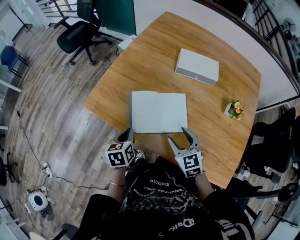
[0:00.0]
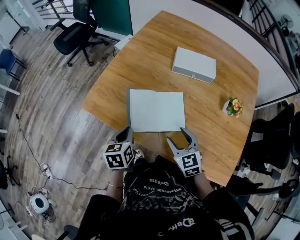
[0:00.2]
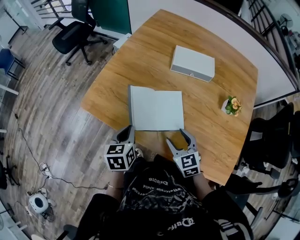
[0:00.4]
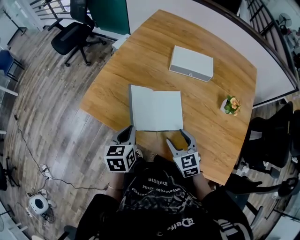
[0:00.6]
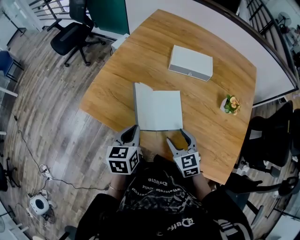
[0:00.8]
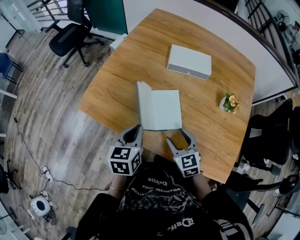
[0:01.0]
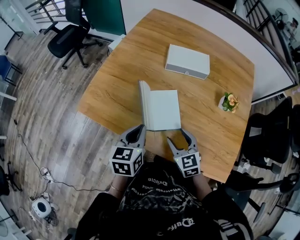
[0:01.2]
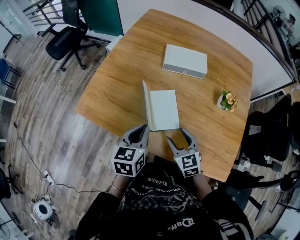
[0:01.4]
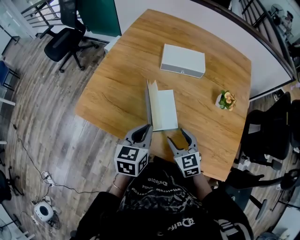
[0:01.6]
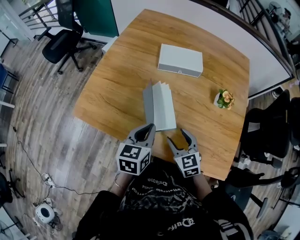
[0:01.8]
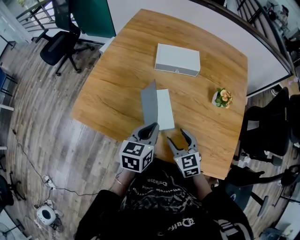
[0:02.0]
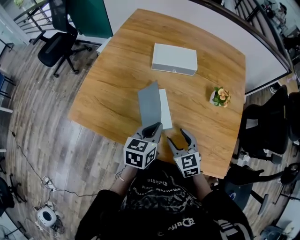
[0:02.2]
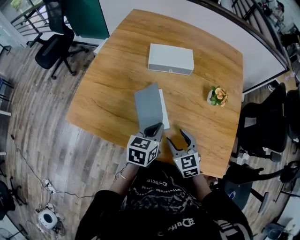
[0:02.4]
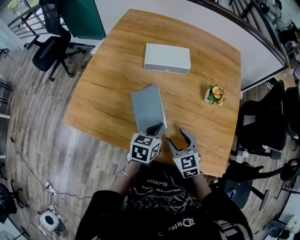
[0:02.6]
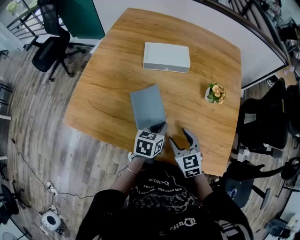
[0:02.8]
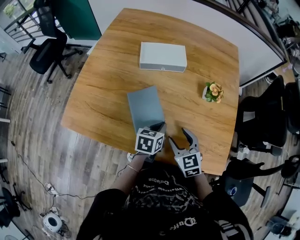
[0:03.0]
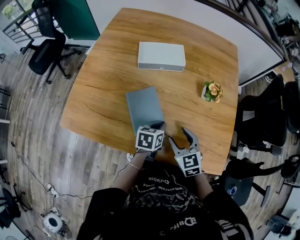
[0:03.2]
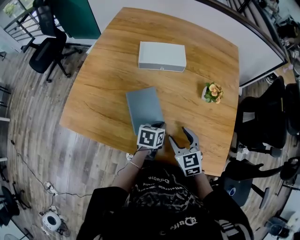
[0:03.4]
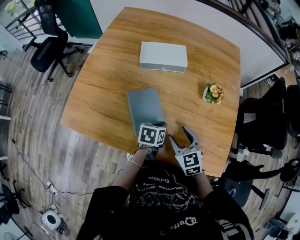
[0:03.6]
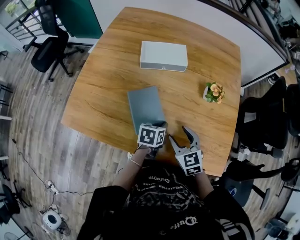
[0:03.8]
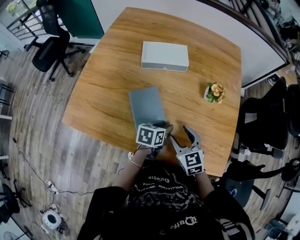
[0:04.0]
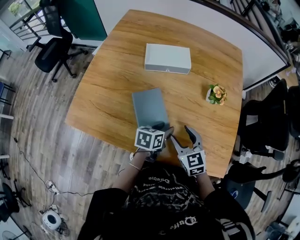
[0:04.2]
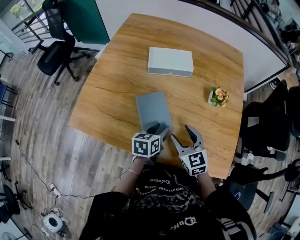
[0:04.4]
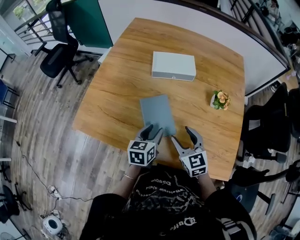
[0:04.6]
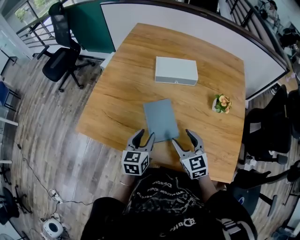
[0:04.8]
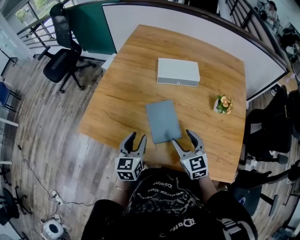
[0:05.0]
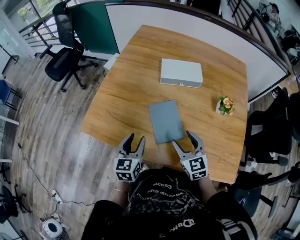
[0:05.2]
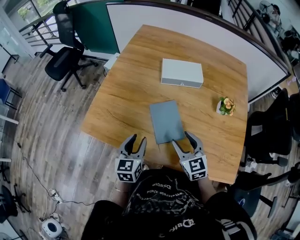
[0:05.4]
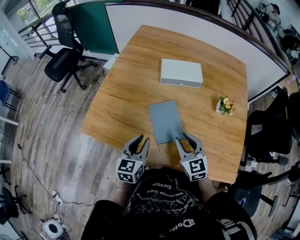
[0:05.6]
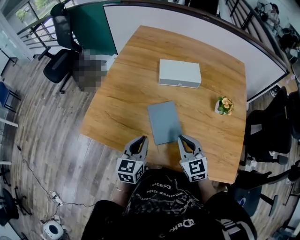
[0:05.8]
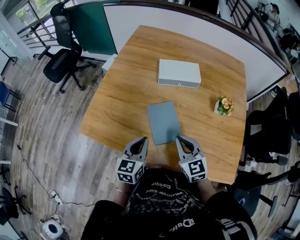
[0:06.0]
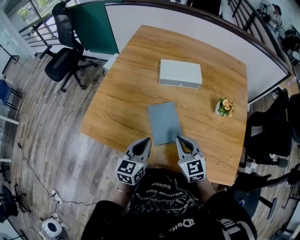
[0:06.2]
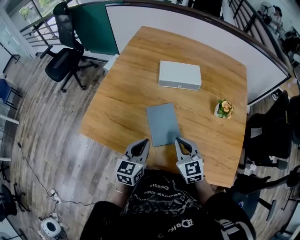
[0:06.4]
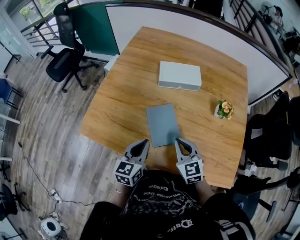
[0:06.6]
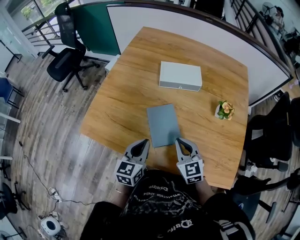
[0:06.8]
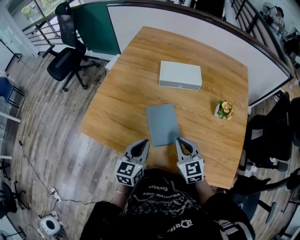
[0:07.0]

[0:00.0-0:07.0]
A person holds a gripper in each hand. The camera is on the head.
0.0 to 1.4 s: The left gripper goes about 15 cm to the right and upward, and rotates roughly 20 degrees.
1.4 to 2.8 s: The left gripper heads to the right and downward, covering about 15 cm, and rotates some 20 degrees. The right gripper moves to the right, about 5 cm.
2.8 to 4.2 s: The left gripper opens up.
4.2 to 5.6 s: The right gripper heads to the left, covering roughly 10 cm. The left gripper travels to the left and upward by some 20 cm, and turns by roughly 40 degrees.
5.6 to 7.0 s: The right gripper closes up.

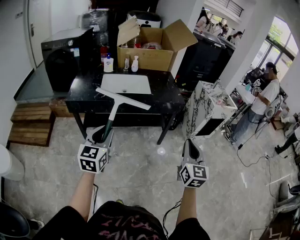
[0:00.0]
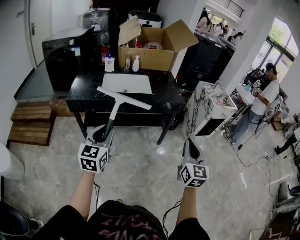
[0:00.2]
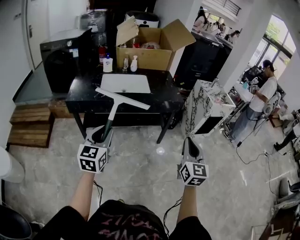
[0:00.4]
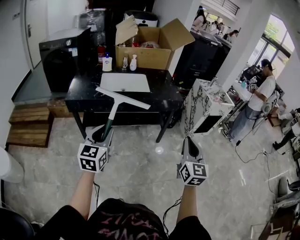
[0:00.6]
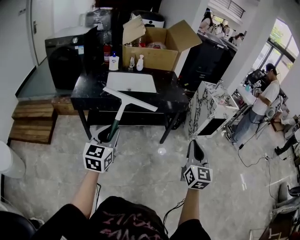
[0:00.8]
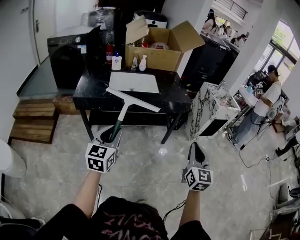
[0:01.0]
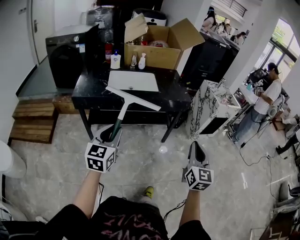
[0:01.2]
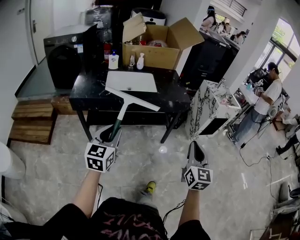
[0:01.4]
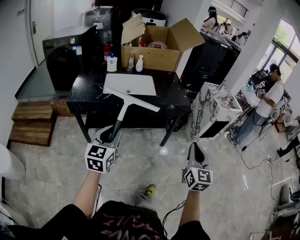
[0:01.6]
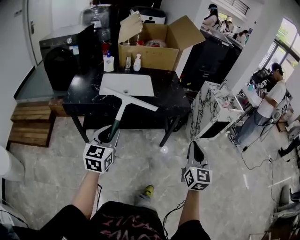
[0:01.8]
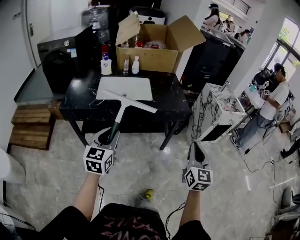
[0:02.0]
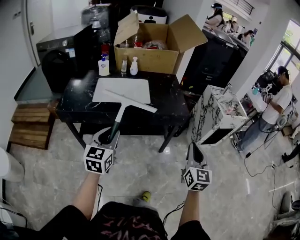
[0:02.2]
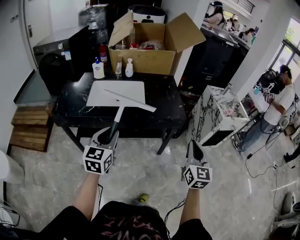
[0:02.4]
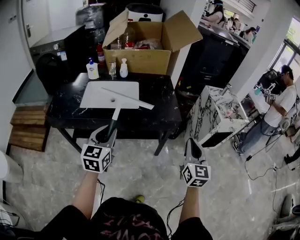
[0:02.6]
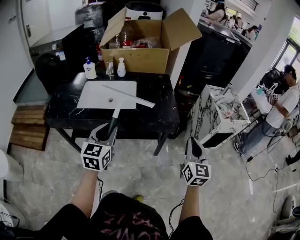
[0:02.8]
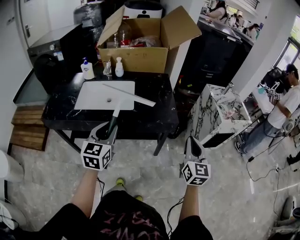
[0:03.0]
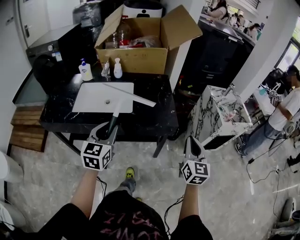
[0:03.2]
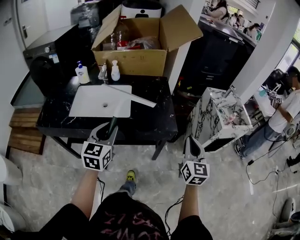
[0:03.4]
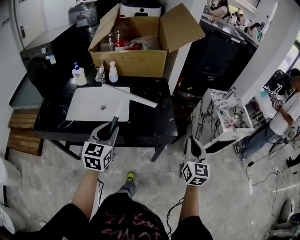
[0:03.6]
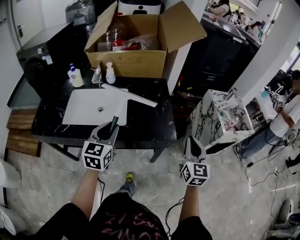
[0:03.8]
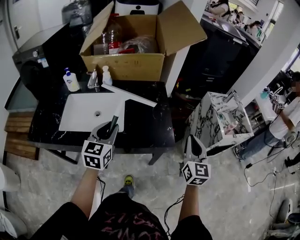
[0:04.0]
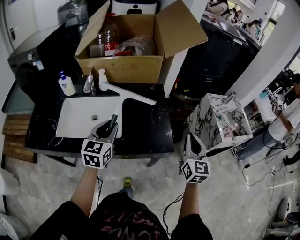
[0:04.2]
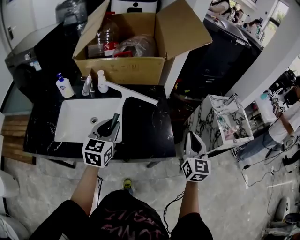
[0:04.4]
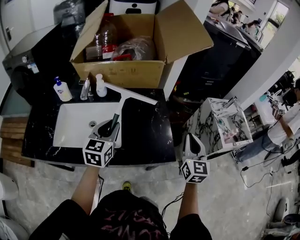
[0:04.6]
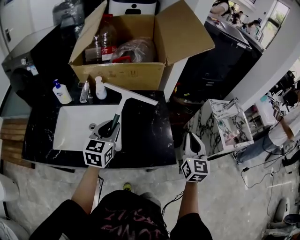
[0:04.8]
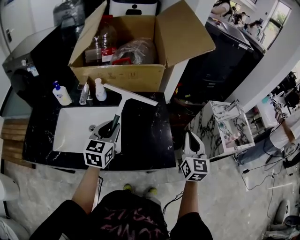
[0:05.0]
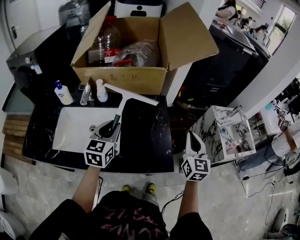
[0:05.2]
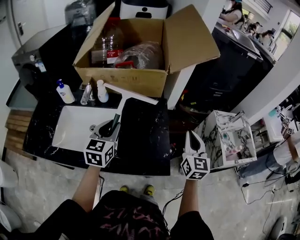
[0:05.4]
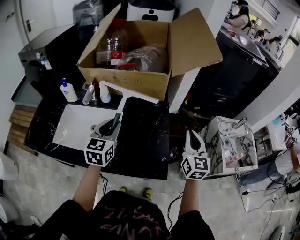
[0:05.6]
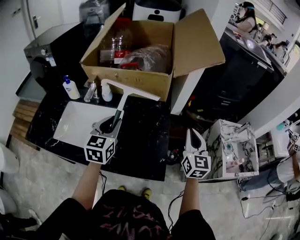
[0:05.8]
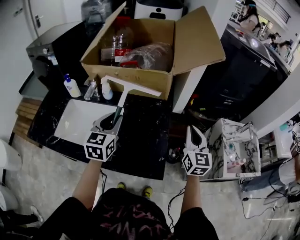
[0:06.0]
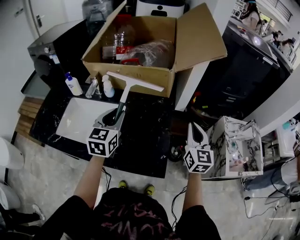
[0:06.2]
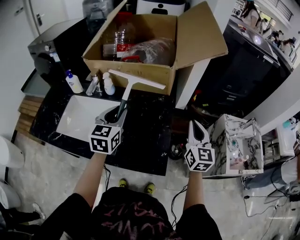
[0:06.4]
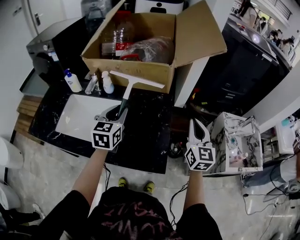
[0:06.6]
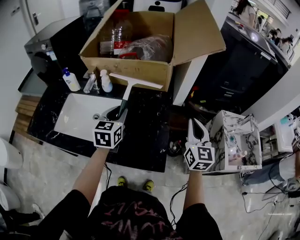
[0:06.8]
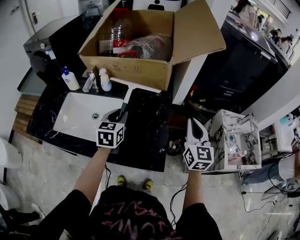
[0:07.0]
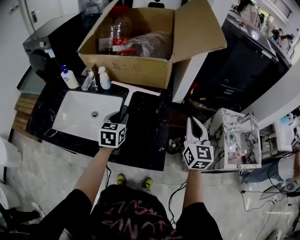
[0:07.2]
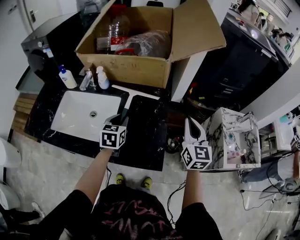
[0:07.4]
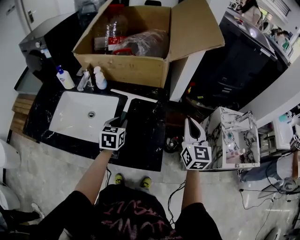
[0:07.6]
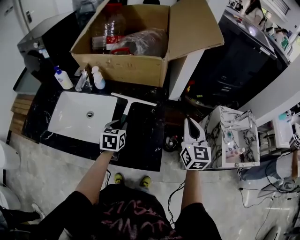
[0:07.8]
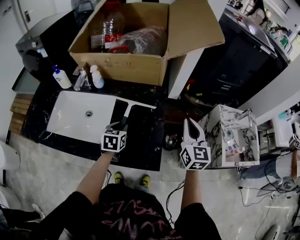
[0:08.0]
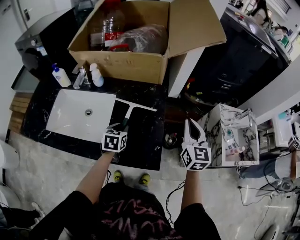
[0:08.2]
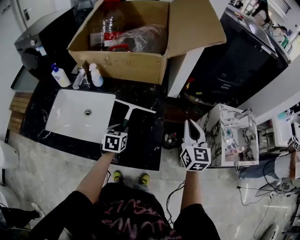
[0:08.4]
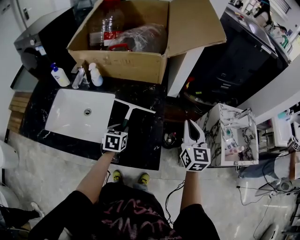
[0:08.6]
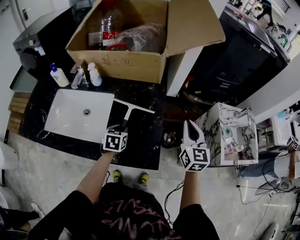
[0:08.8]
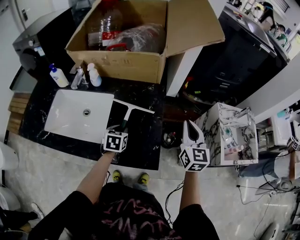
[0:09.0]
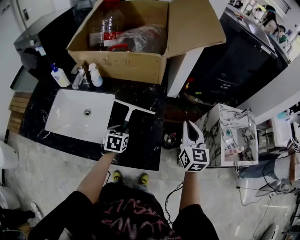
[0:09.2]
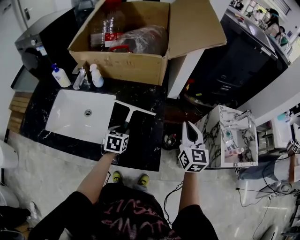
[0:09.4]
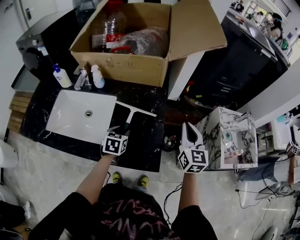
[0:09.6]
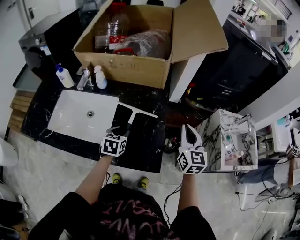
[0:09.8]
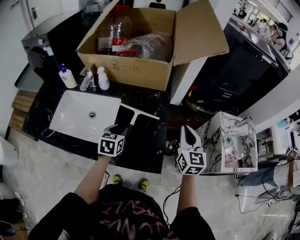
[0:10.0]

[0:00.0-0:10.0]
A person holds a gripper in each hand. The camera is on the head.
0.0 to 1.4 s: The grippers make only small movements.
1.4 to 2.8 s: Both grippers travel together forward and to the right, approximately 35 cm.
2.8 to 4.2 s: The two grippers go roughly 25 cm forward.
4.2 to 5.8 s: The right gripper moves forward, about 20 cm. The left gripper moves forward, roughly 15 cm.
5.8 to 7.2 s: The left gripper travels downward by about 10 cm.
7.2 to 8.6 s: The left gripper travels downward by roughly 10 cm.
8.6 to 10.0 s: The left gripper shifts by some 5 cm.

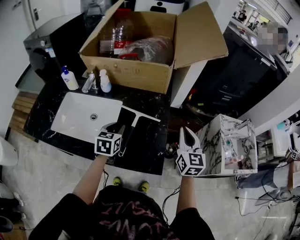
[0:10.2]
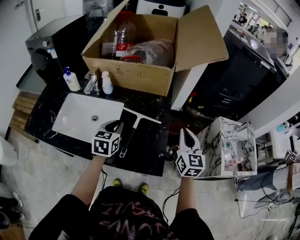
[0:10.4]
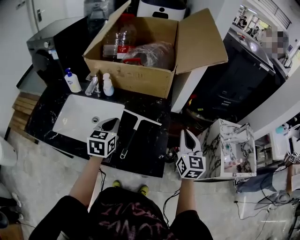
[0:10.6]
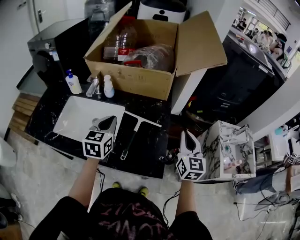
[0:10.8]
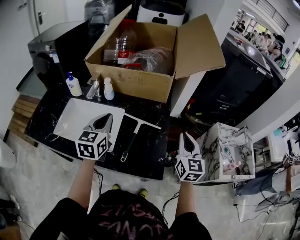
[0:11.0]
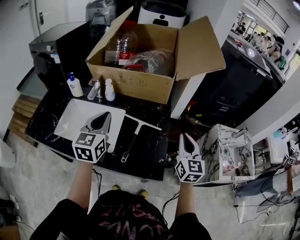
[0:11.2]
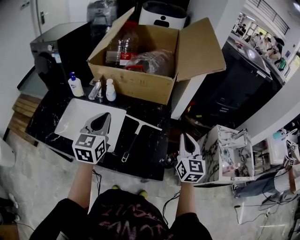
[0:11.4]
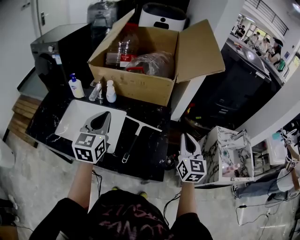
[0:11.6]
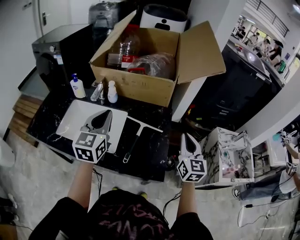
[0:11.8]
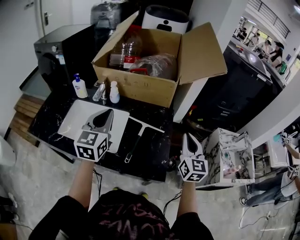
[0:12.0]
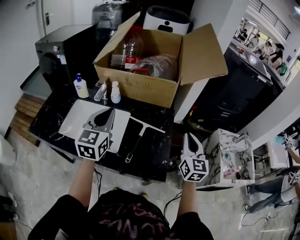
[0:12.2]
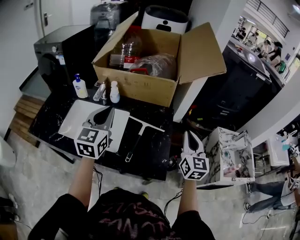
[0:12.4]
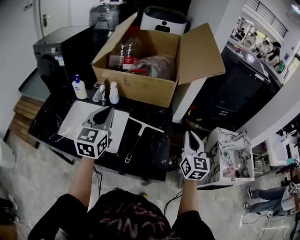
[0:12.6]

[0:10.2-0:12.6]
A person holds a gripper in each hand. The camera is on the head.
10.2 to 11.4 s: The left gripper heads upward, covering roughly 15 cm, swivels about 20 degrees, and closes up.
11.4 to 12.6 s: The grippers stay close to where they were, moving slightly.

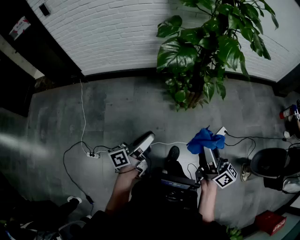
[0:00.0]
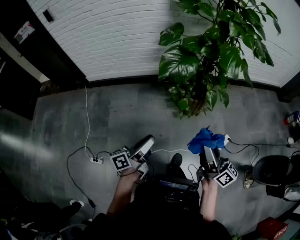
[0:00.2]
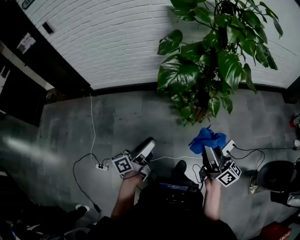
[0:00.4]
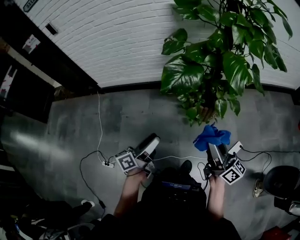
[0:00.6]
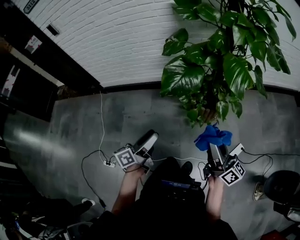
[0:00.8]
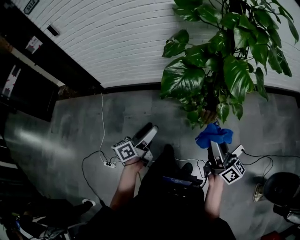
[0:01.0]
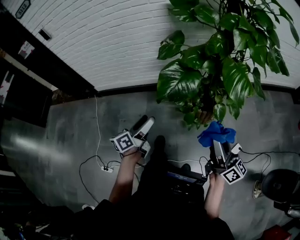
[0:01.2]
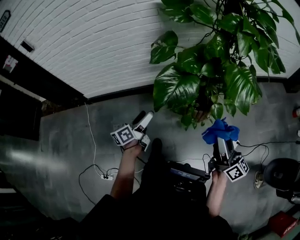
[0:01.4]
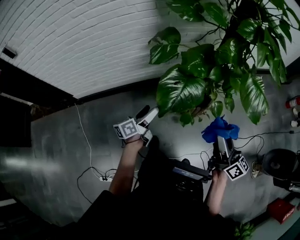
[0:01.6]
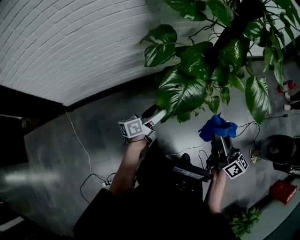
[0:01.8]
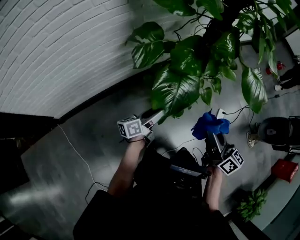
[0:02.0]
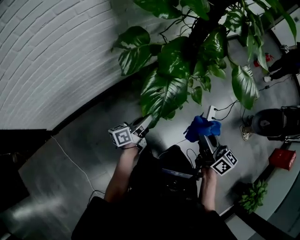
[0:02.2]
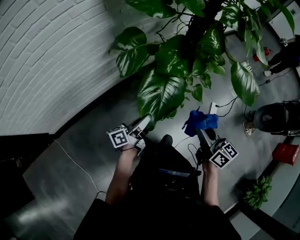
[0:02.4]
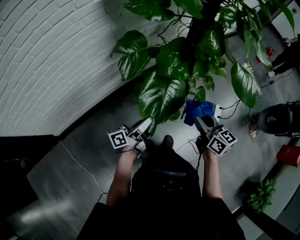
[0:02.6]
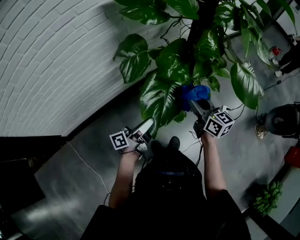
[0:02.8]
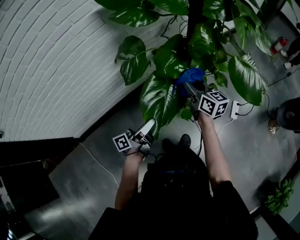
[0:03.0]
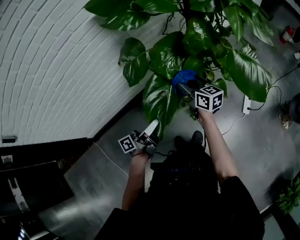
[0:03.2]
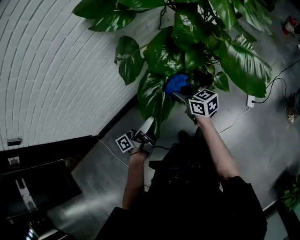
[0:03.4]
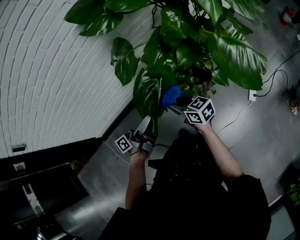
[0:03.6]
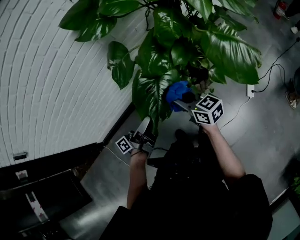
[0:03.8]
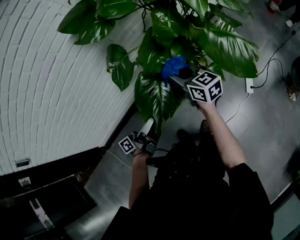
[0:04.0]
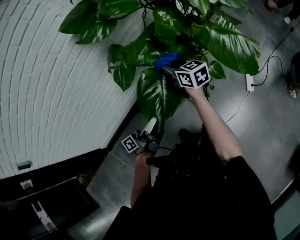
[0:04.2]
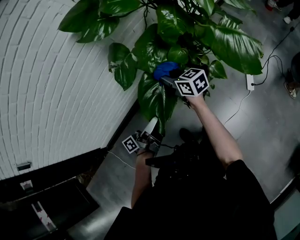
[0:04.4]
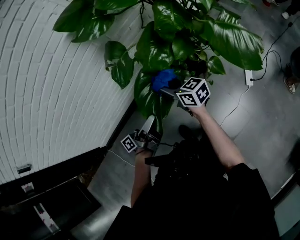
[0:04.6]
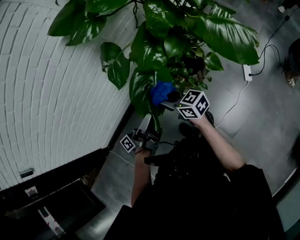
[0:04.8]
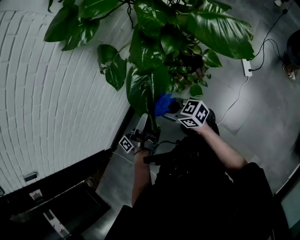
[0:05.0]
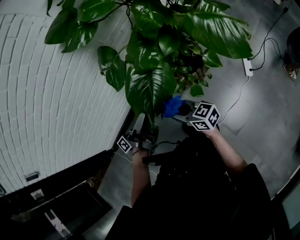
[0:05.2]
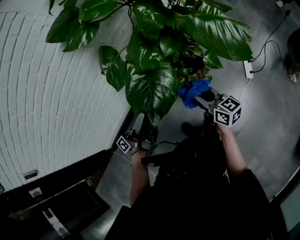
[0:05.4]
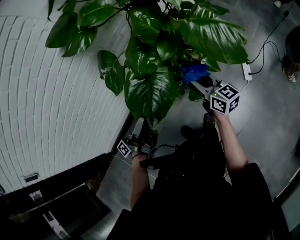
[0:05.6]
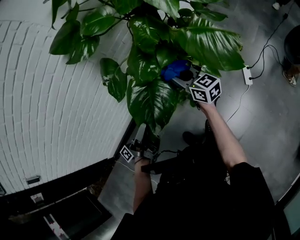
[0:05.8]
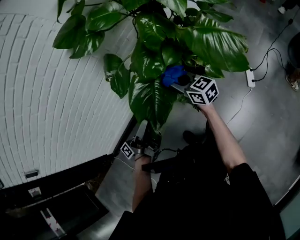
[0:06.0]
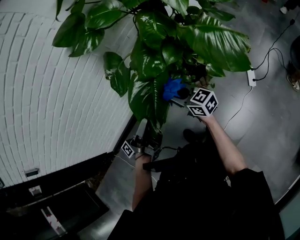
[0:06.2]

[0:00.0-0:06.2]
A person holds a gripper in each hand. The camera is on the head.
0.0 to 1.6 s: The right gripper ends up roughly 35 cm from where it was.
1.6 to 3.2 s: The right gripper shifts by some 30 cm.
3.2 to 4.6 s: The right gripper moves up and down over roughly 10 cm, changing direction 2 times.
4.6 to 6.2 s: The right gripper goes up and down, roughly 5 cm each way, reversing 2 times.
